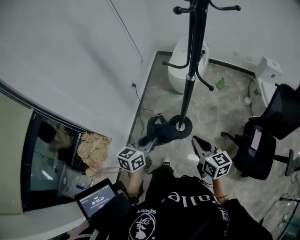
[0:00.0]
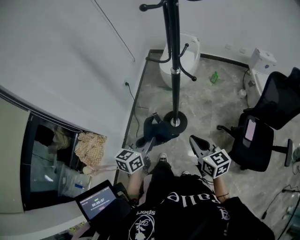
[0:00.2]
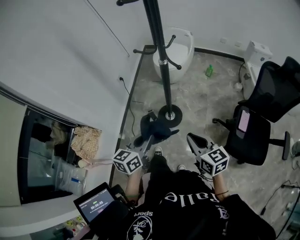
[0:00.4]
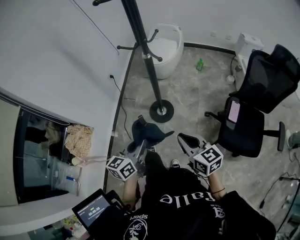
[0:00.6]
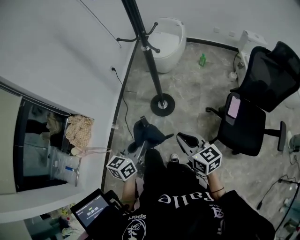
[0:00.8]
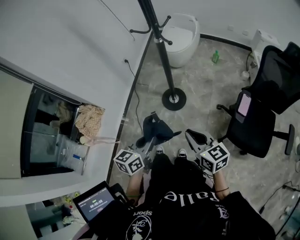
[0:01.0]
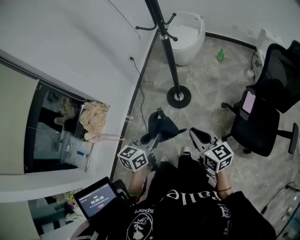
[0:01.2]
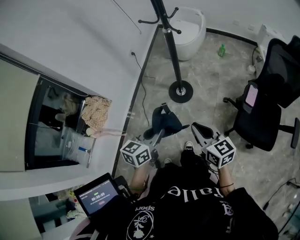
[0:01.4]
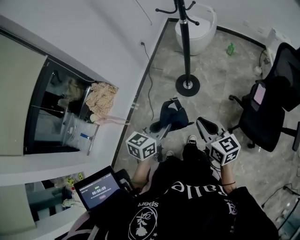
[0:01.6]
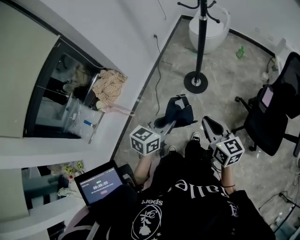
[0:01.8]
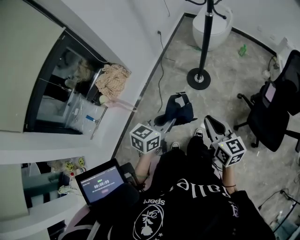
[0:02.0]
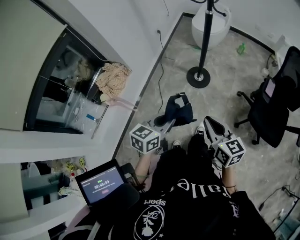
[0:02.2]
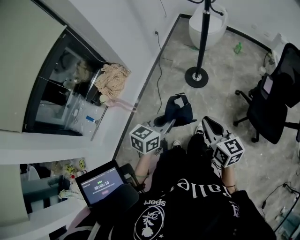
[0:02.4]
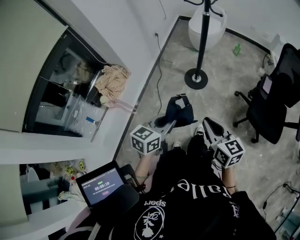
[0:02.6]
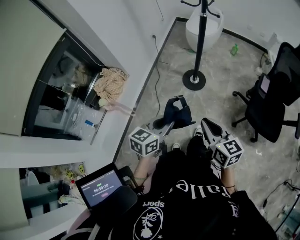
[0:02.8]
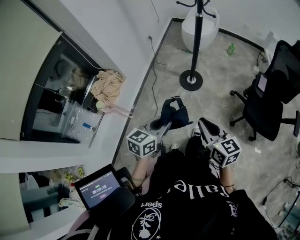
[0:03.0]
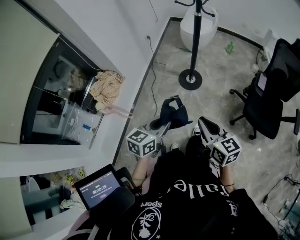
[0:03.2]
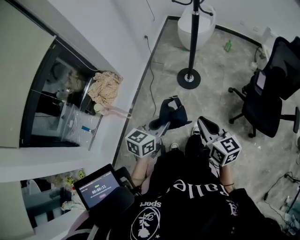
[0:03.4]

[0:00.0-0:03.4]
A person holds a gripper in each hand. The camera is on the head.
0:00.0 to 0:01.6: The right gripper goes about 25 cm backward; the left gripper goes approximately 30 cm backward and to the right.
0:01.6 to 0:03.4: Both grippers travel together to the left and backward, approximately 15 cm.

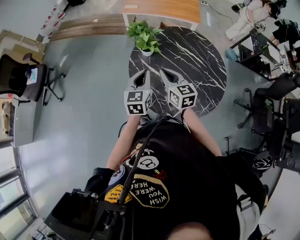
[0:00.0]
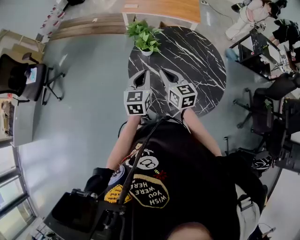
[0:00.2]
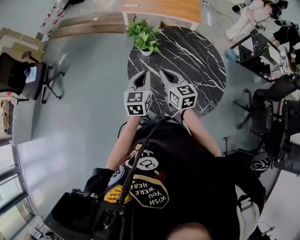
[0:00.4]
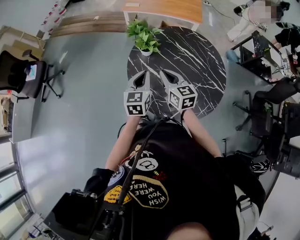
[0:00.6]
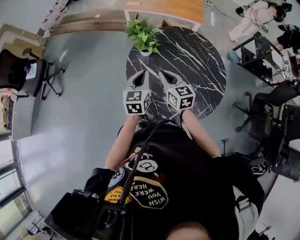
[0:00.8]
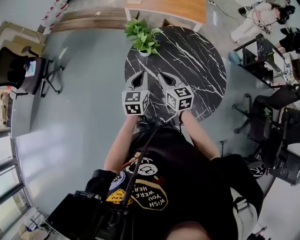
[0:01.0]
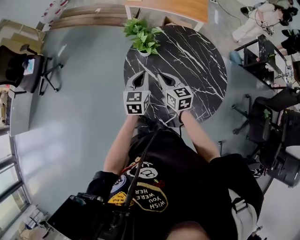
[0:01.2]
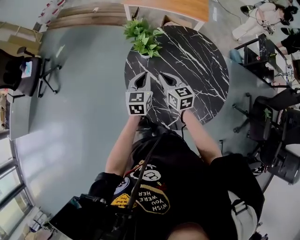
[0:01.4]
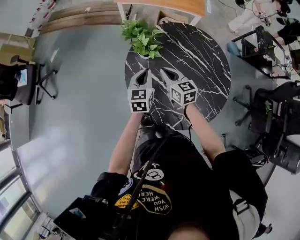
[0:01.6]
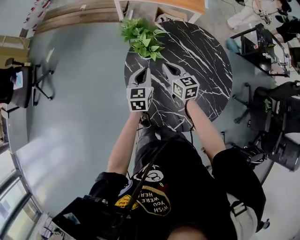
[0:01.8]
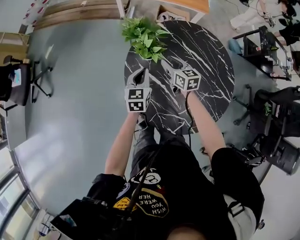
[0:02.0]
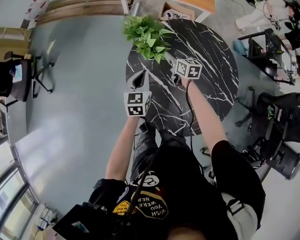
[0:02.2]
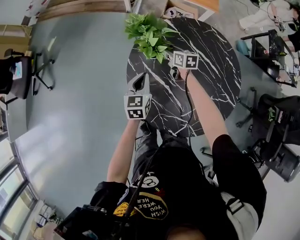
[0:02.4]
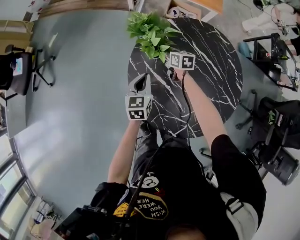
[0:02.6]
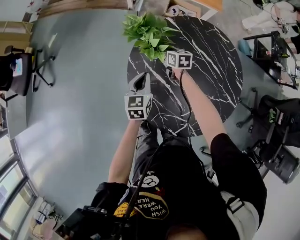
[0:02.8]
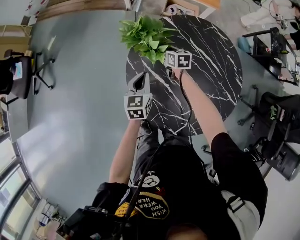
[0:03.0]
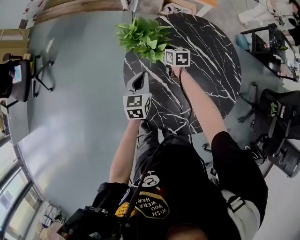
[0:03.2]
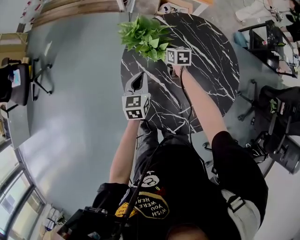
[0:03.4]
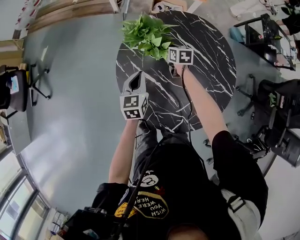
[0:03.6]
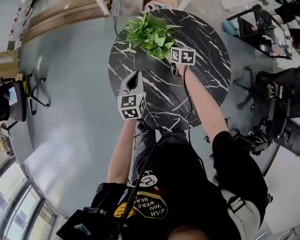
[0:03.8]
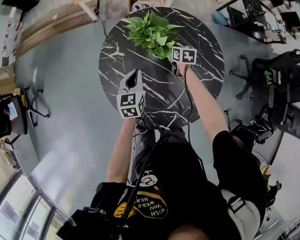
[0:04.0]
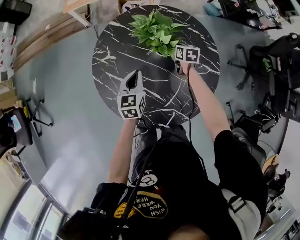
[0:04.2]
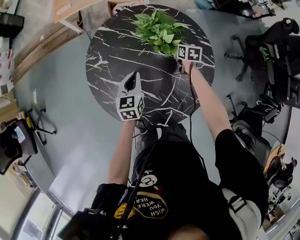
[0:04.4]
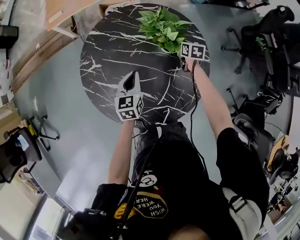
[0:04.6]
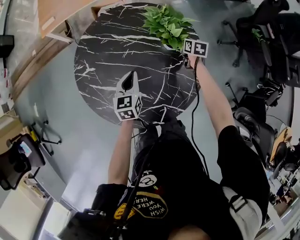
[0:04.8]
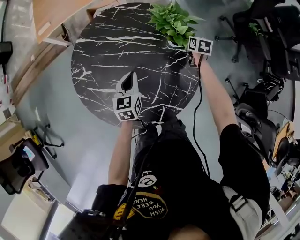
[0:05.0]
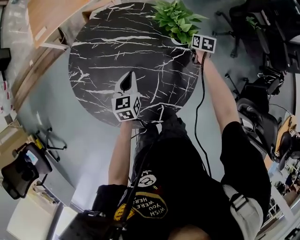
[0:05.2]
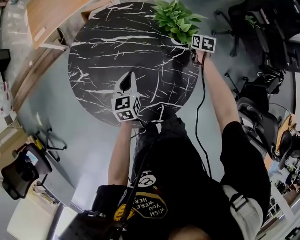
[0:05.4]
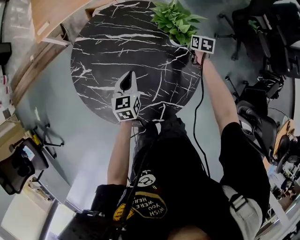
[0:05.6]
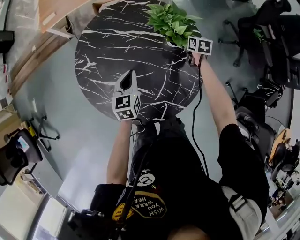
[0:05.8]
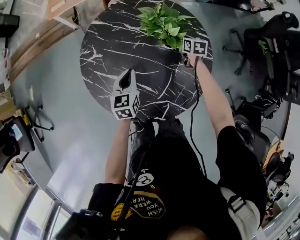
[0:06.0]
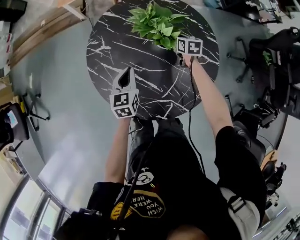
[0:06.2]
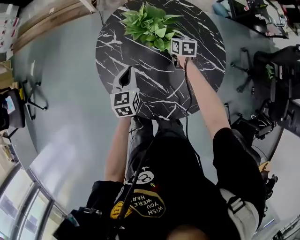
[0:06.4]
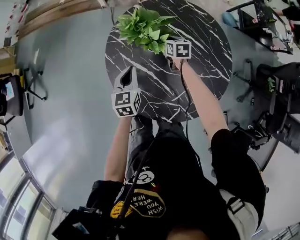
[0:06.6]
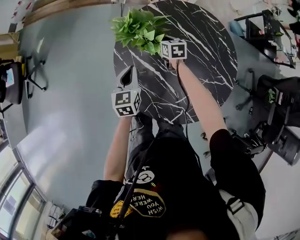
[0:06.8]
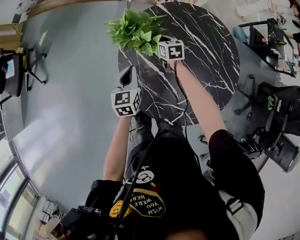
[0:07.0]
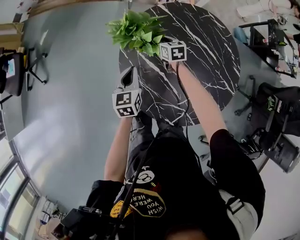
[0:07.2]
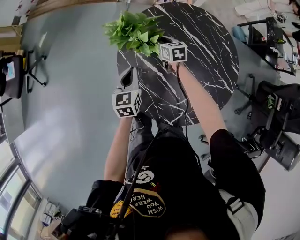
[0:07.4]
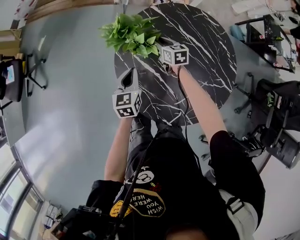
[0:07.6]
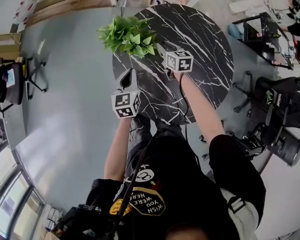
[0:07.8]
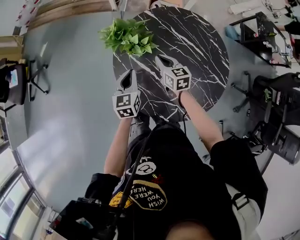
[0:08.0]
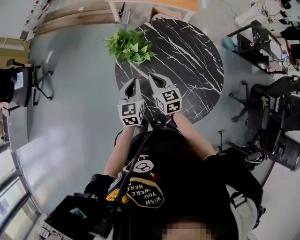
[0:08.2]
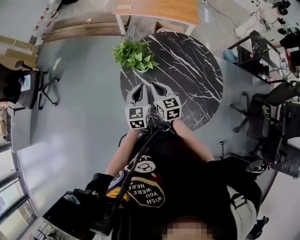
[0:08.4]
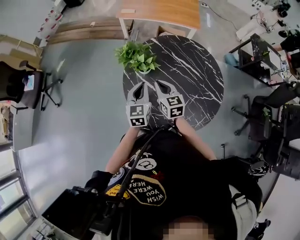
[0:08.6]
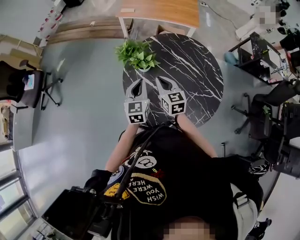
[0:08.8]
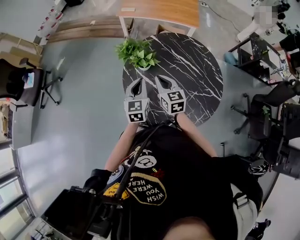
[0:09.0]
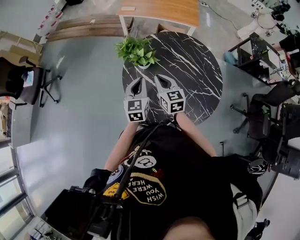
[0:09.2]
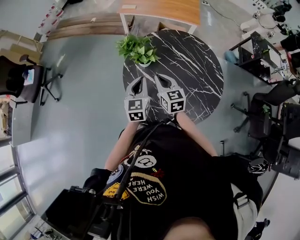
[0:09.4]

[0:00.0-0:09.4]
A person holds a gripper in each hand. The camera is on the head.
0:00.0 to 0:01.6: The two grippers go about 15 cm forward and downward.
0:01.6 to 0:03.2: The left gripper heads backward and to the left, covering some 15 cm. Meanwhile the right gripper is displaced downward and to the left by about 10 cm, reaches approximately 20 cm forward, then returns, rotates about 20 degrees, and opens and closes again.
0:03.2 to 0:04.8: The left gripper ends up roughly 40 cm from where it was, and swivels approximately 30 degrees, while the right gripper changes place by about 60 cm, and turns by some 40 degrees.
0:04.8 to 0:06.2: The right gripper moves to the left, about 20 cm; the left gripper travels to the left by some 10 cm.
0:06.2 to 0:07.8: The left gripper changes place by some 15 cm. The right gripper changes place by about 25 cm, changes its angle by roughly 30 degrees, and opens its fingers.
0:07.8 to 0:09.4: The right gripper moves upward and backward, roughly 25 cm, and closes. Meanwhile the left gripper travels upward and backward by some 15 cm.

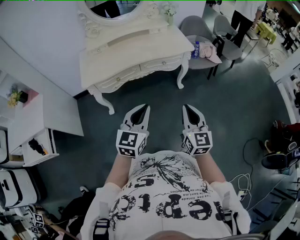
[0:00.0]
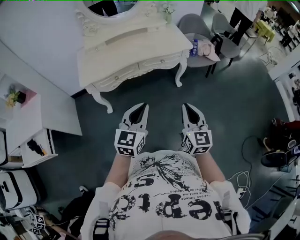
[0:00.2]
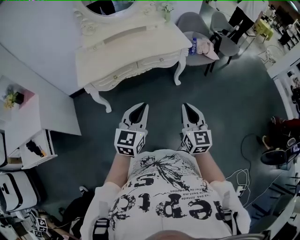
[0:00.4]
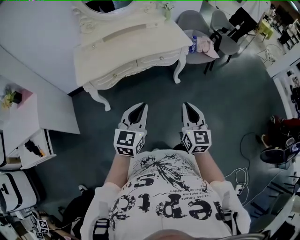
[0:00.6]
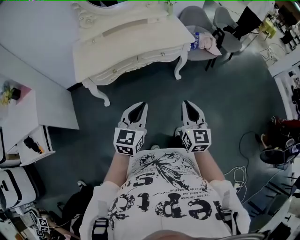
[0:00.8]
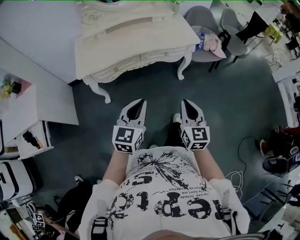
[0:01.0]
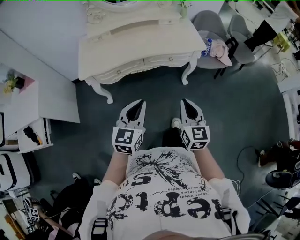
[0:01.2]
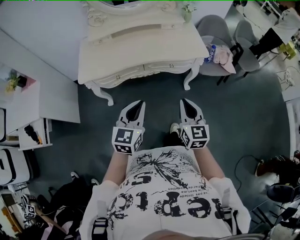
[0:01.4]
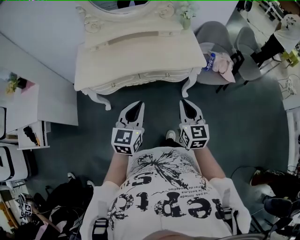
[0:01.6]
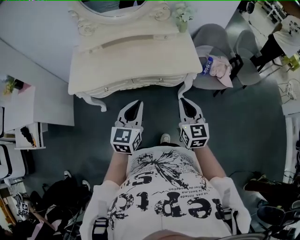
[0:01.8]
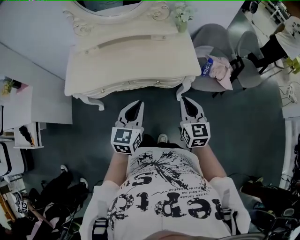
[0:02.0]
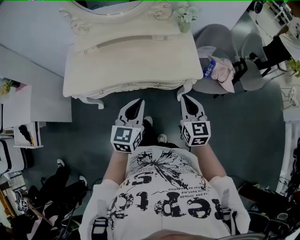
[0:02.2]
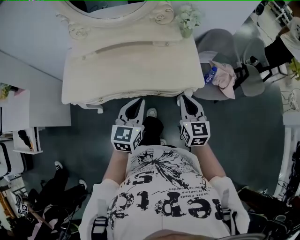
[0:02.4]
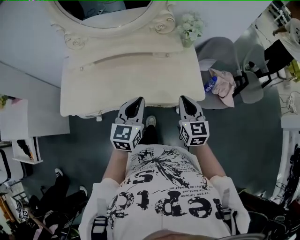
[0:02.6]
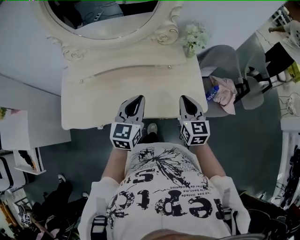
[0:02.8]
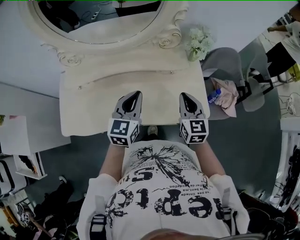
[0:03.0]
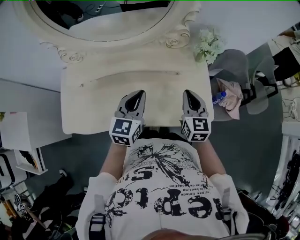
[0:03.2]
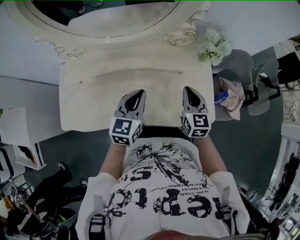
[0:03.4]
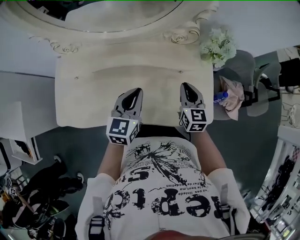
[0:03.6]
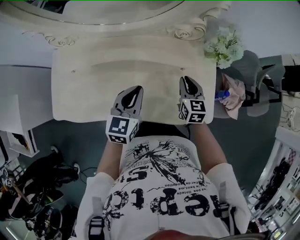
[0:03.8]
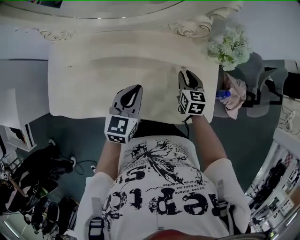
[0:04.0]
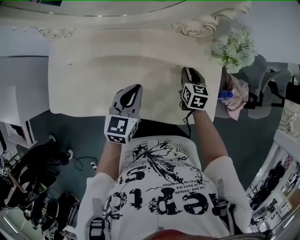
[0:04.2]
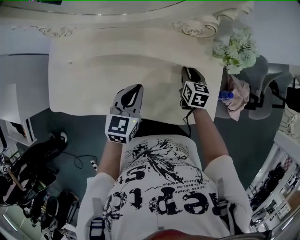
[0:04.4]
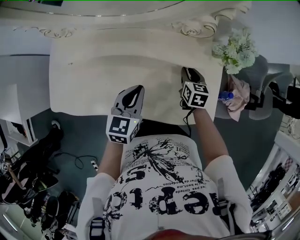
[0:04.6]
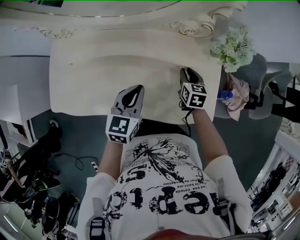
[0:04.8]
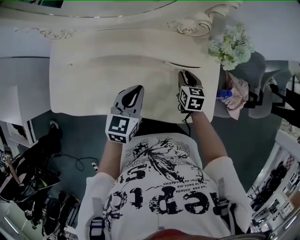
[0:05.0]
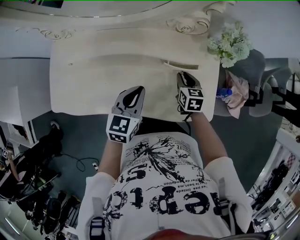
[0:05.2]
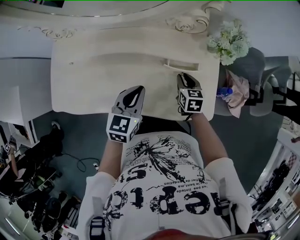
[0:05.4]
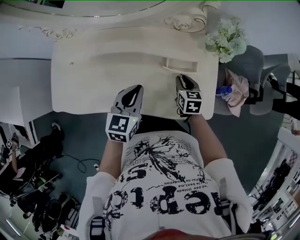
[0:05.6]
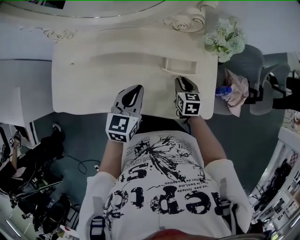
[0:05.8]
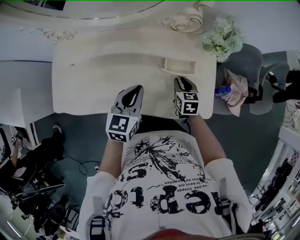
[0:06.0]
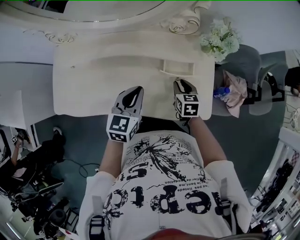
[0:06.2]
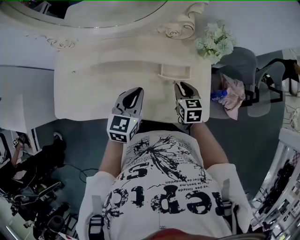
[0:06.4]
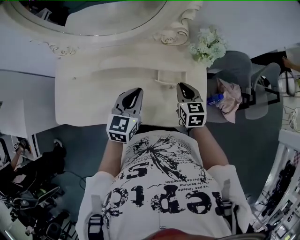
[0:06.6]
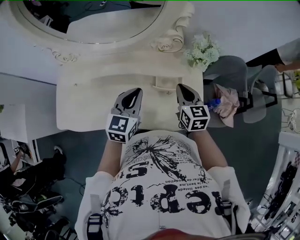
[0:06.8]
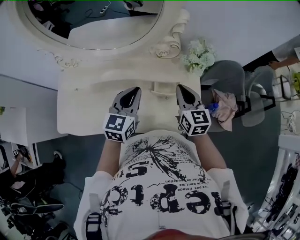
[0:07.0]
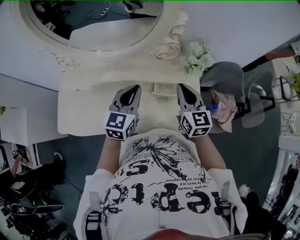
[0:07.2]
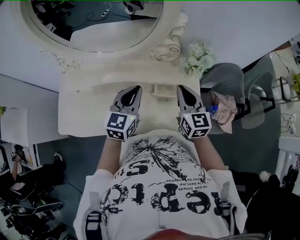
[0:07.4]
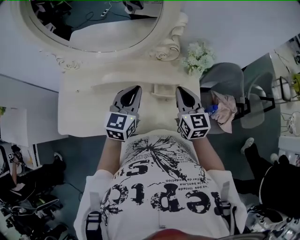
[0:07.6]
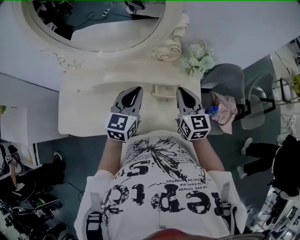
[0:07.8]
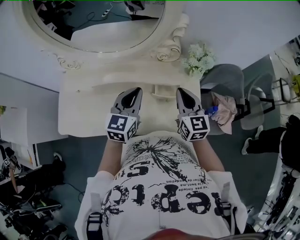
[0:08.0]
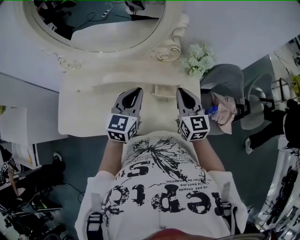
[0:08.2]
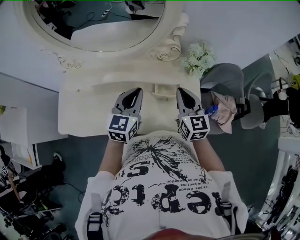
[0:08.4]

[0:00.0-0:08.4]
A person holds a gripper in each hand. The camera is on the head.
0:00.0 to 0:01.4: The two grippers go approximately 15 cm forward.
0:01.4 to 0:02.8: The two grippers travel together, forward, approximately 40 cm.
0:02.8 to 0:04.2: The right gripper heads forward and downward, covering about 30 cm, rotates some 20 degrees, and opens, while the left gripper goes roughly 15 cm forward and downward.
0:04.2 to 0:05.6: The right gripper is displaced backward by about 5 cm.
0:05.6 to 0:07.0: The right gripper shifts roughly 20 cm upward, changes its angle by roughly 30 degrees, and closes; the left gripper moves upward, about 10 cm.
0:07.0 to 0:08.4: The grippers move only a little.

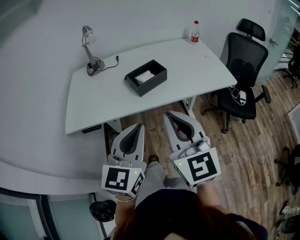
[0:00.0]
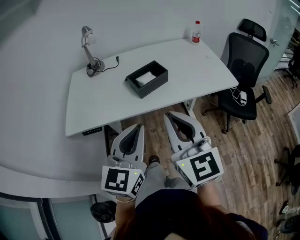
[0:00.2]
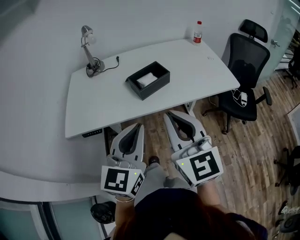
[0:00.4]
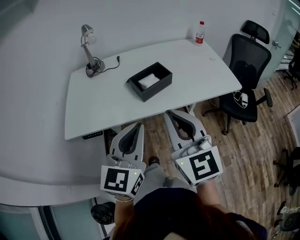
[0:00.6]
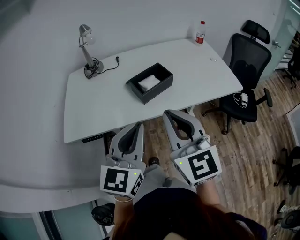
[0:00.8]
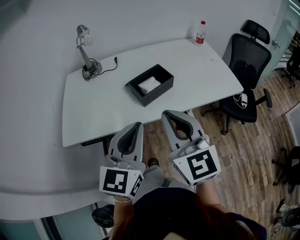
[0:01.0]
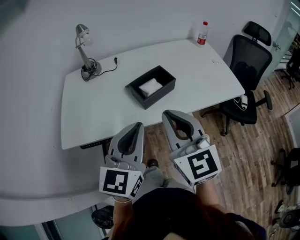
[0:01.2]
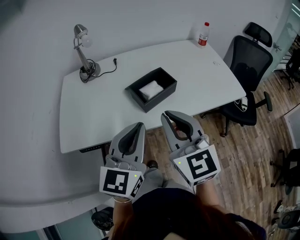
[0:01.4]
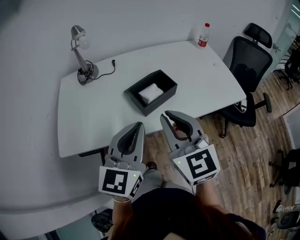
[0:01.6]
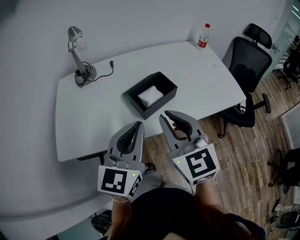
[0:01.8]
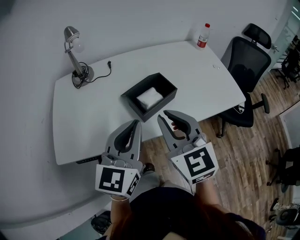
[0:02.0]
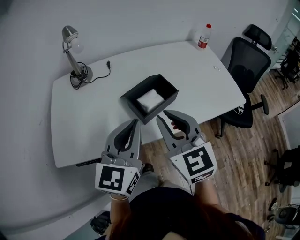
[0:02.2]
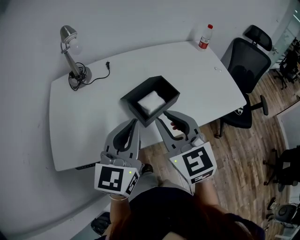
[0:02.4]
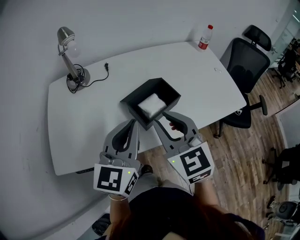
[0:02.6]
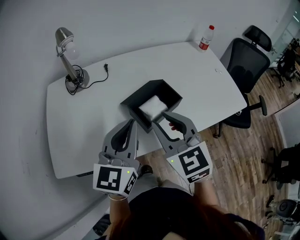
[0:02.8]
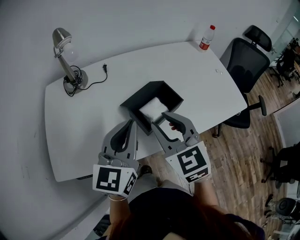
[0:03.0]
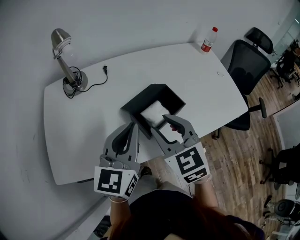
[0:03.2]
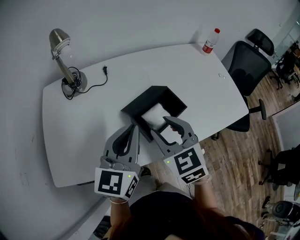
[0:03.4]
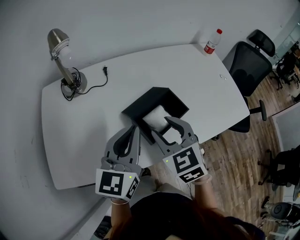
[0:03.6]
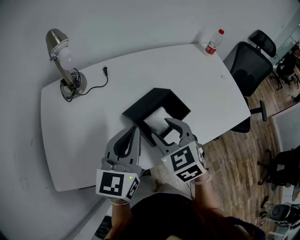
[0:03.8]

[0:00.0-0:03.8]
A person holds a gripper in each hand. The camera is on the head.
0:00.0 to 0:01.2: The grippers both shift forward by roughly 10 cm.
0:01.2 to 0:02.6: Both grippers move forward, approximately 15 cm.
0:02.6 to 0:03.8: The left gripper heads forward, covering some 5 cm, while the right gripper travels downward and forward by some 10 cm, changes its angle by roughly 20 degrees, and opens its fingers.
